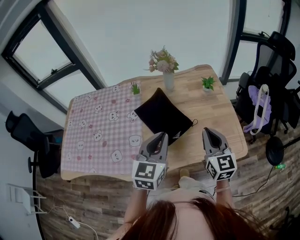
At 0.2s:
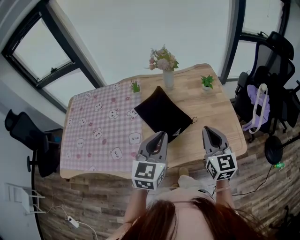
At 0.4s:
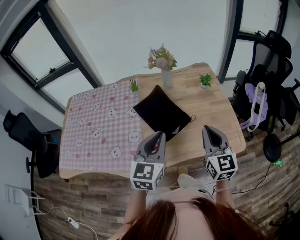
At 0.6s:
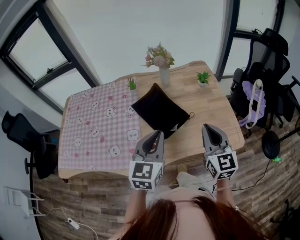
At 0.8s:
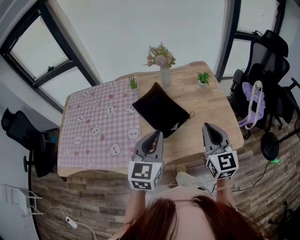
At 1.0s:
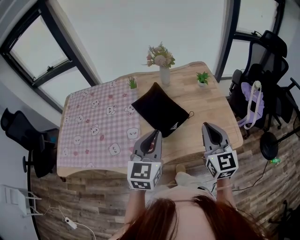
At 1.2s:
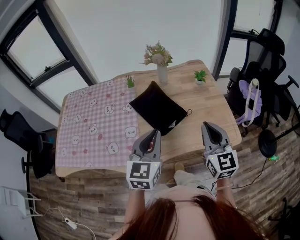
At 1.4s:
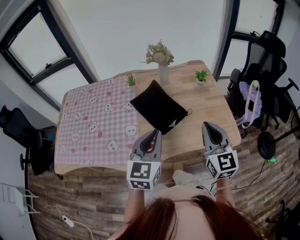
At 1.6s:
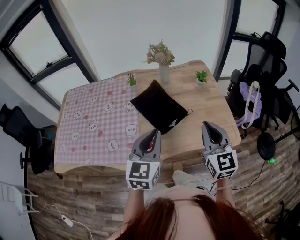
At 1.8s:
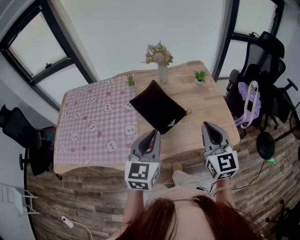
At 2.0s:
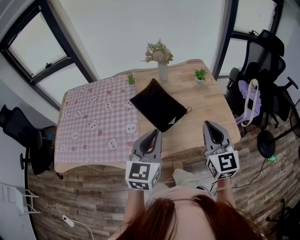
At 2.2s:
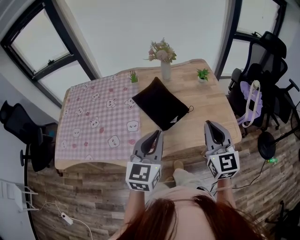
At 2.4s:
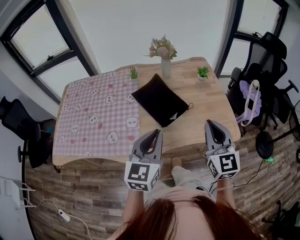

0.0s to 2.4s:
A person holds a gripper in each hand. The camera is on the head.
0.0s to 1.2s: Both grippers travel together backward, approximately 5 cm.
1.2s to 2.4s: There are only small adjustments of the grippers.

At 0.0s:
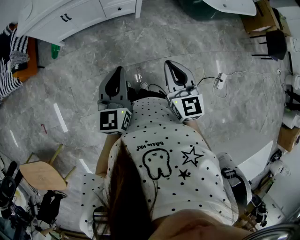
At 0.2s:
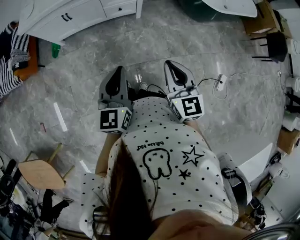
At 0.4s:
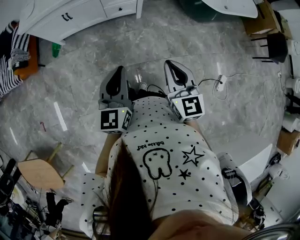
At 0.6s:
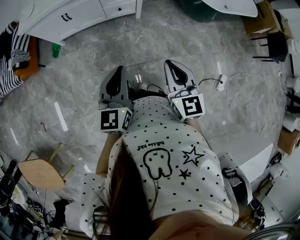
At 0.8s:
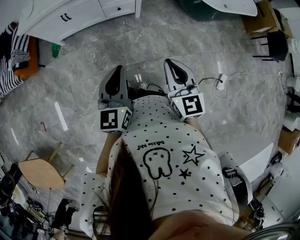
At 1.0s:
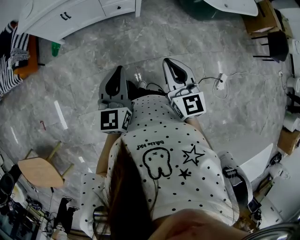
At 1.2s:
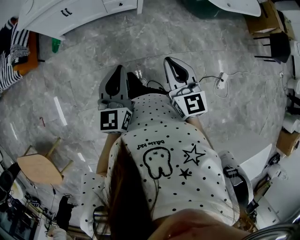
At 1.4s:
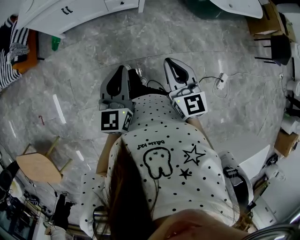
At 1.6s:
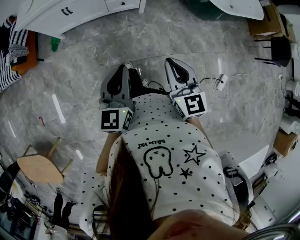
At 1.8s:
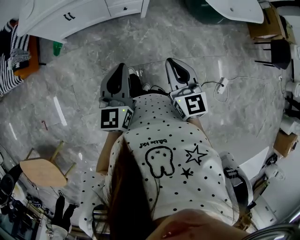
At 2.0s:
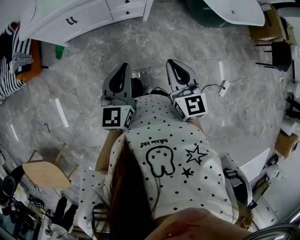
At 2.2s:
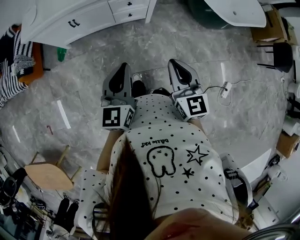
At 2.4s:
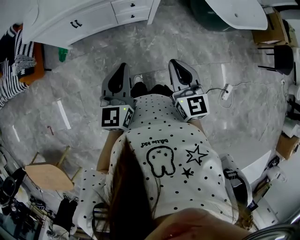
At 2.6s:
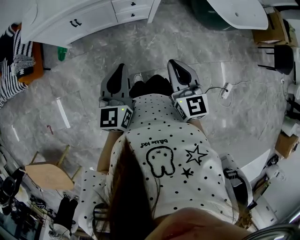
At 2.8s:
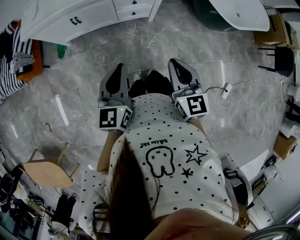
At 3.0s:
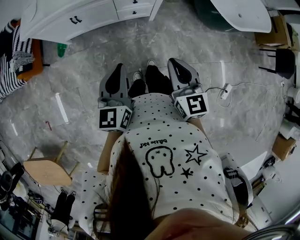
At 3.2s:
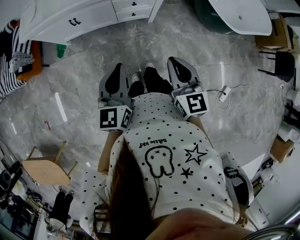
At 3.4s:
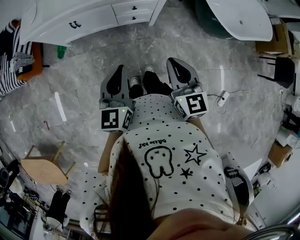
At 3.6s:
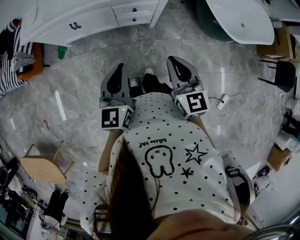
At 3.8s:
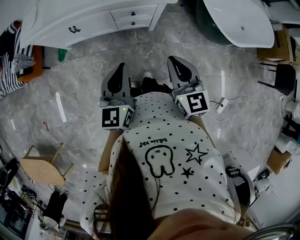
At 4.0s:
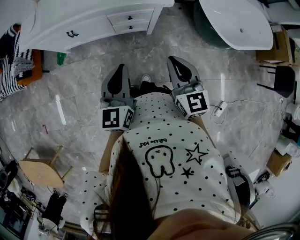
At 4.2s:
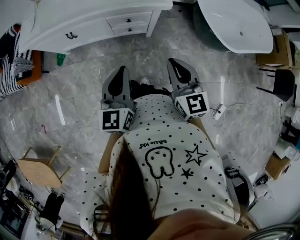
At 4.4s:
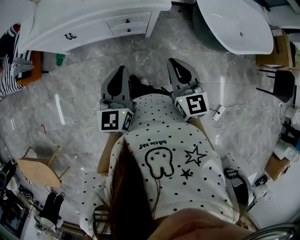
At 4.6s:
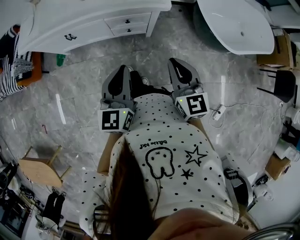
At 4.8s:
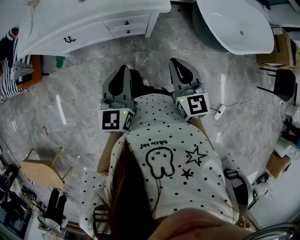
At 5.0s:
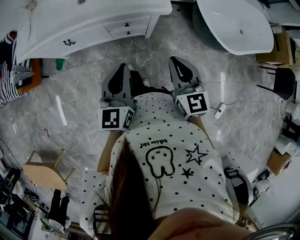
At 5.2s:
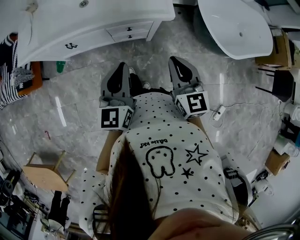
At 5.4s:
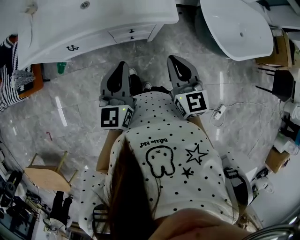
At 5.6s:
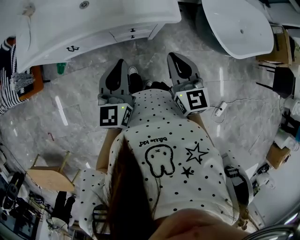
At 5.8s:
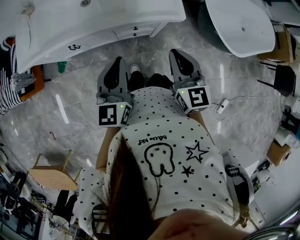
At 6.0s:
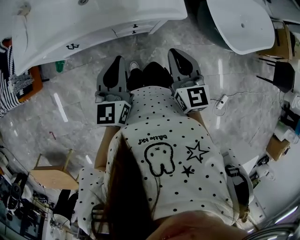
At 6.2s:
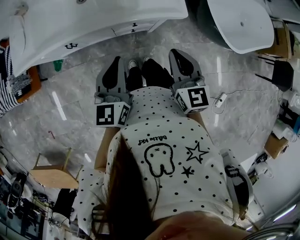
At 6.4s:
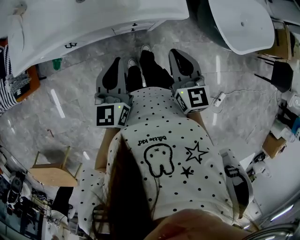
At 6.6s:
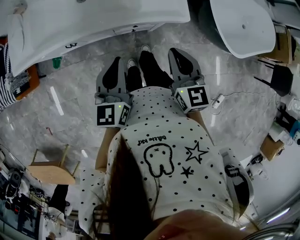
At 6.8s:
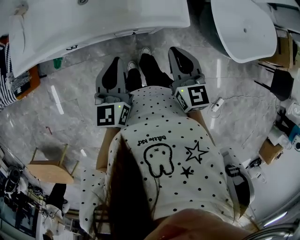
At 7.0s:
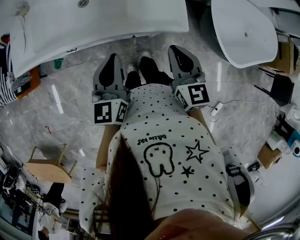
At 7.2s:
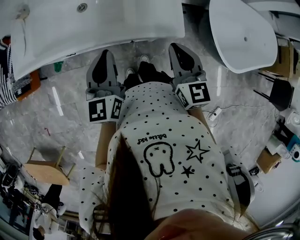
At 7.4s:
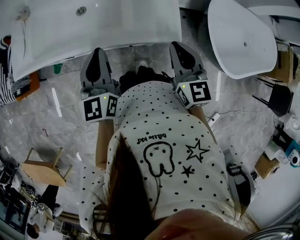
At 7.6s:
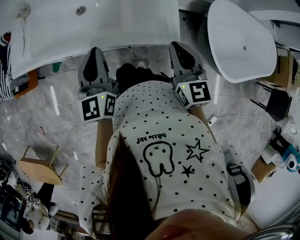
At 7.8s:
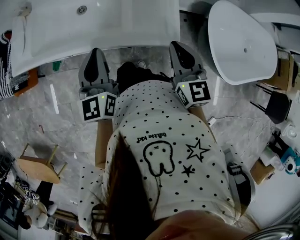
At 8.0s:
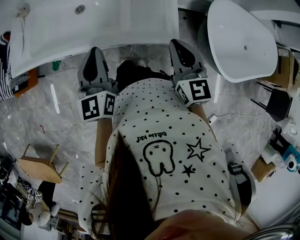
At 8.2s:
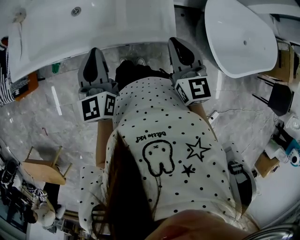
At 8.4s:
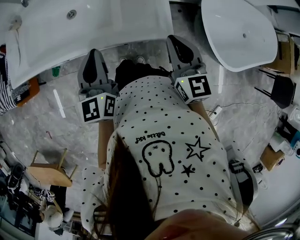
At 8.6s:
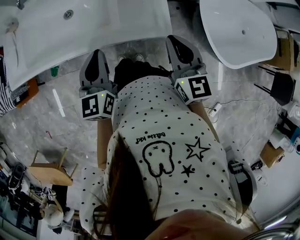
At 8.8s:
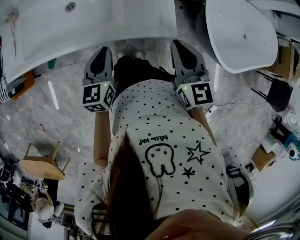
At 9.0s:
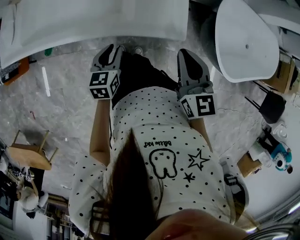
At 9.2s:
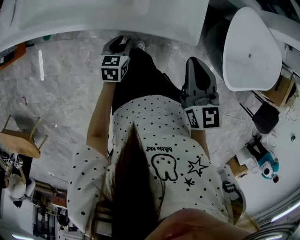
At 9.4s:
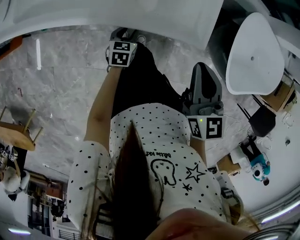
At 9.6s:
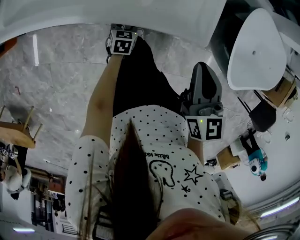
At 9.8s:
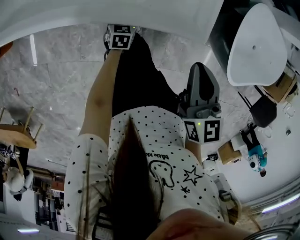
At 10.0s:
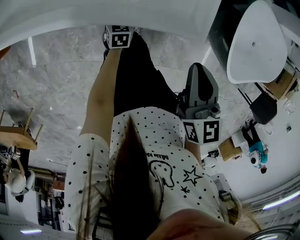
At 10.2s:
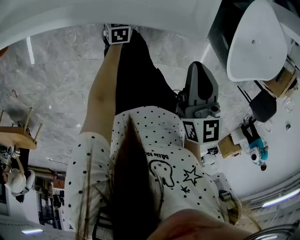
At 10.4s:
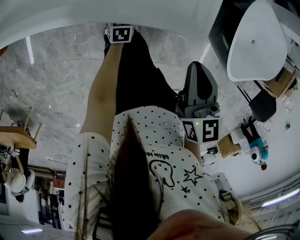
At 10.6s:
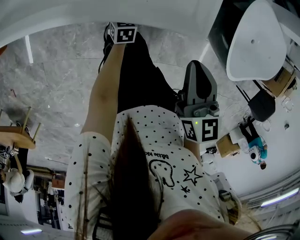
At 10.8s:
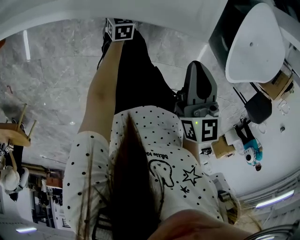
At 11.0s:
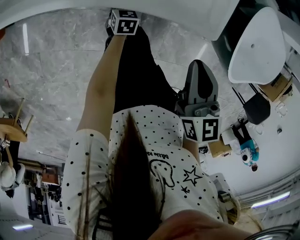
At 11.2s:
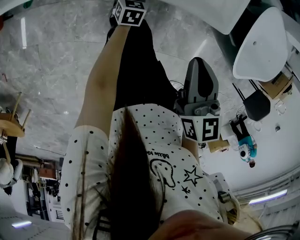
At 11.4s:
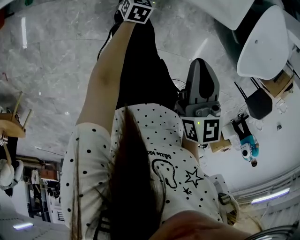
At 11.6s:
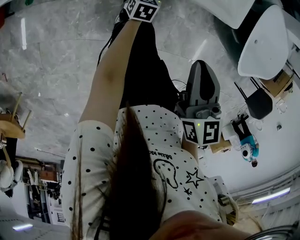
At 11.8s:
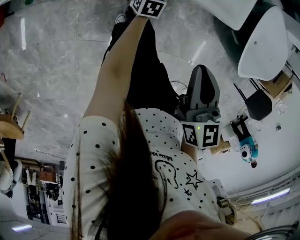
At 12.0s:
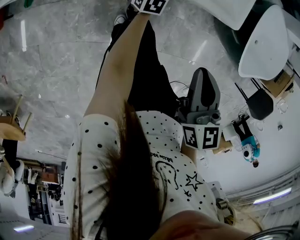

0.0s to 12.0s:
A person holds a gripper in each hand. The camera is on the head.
0.0s to 3.0s: The grippers move only a little.
3.0s to 6.0s: There are only small adjustments of the grippers.
6.0s to 7.6s: The left gripper goes about 10 cm to the left.
7.6s to 9.0s: The left gripper shifts some 20 cm downward, changes its angle by roughly 30 degrees, and opens its fingers.
9.0s to 10.4s: The left gripper shifts roughly 30 cm downward. The right gripper shifts roughly 10 cm downward.
10.4s to 12.0s: The left gripper closes, then opens again. Meanwhile the right gripper is displaced backward and to the left by some 10 cm.

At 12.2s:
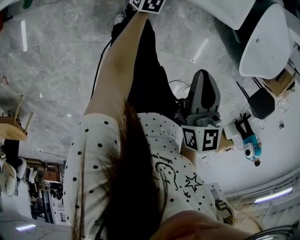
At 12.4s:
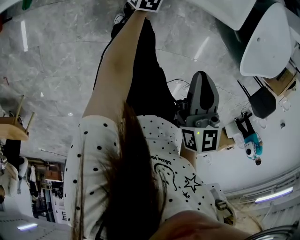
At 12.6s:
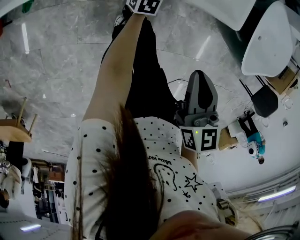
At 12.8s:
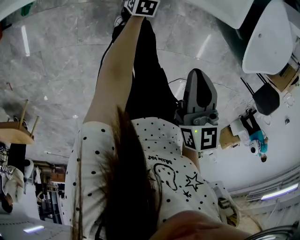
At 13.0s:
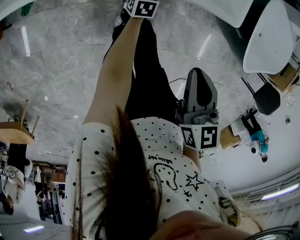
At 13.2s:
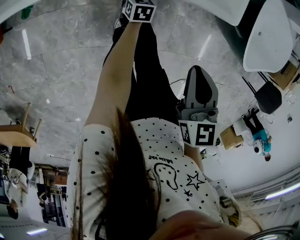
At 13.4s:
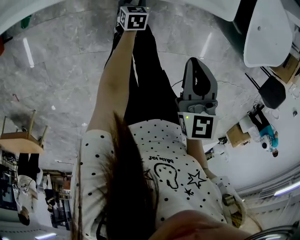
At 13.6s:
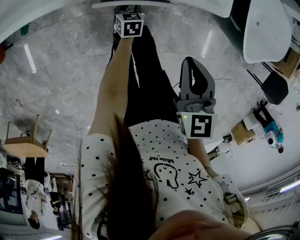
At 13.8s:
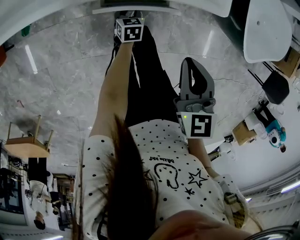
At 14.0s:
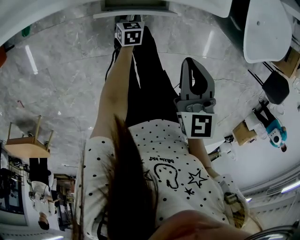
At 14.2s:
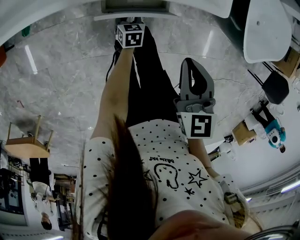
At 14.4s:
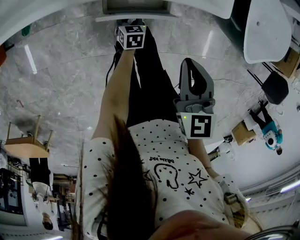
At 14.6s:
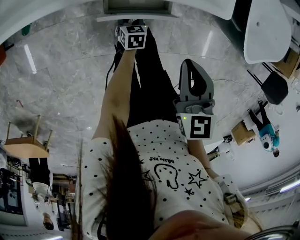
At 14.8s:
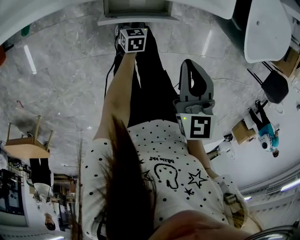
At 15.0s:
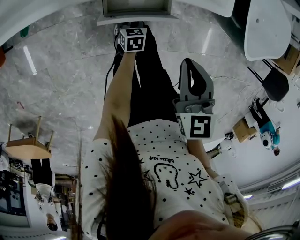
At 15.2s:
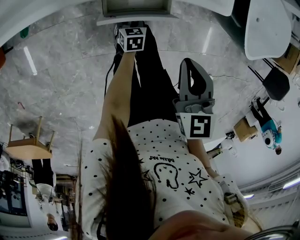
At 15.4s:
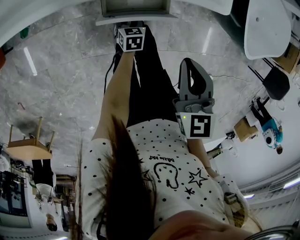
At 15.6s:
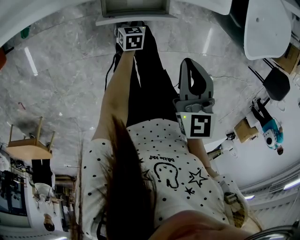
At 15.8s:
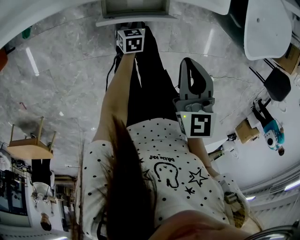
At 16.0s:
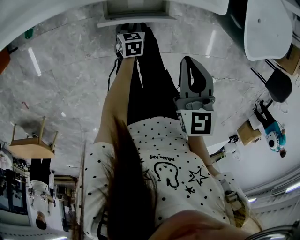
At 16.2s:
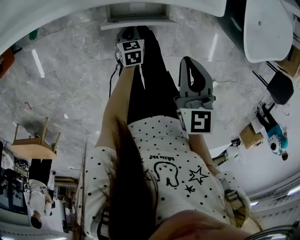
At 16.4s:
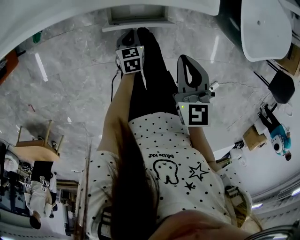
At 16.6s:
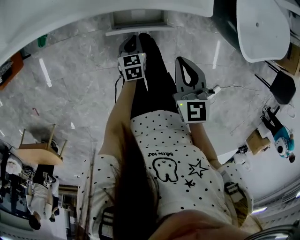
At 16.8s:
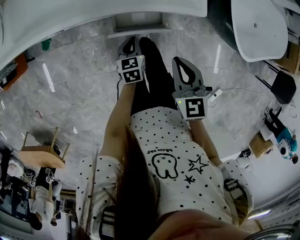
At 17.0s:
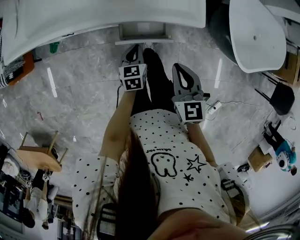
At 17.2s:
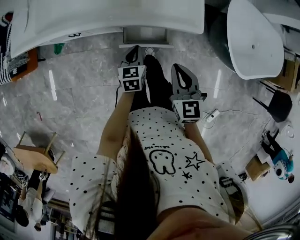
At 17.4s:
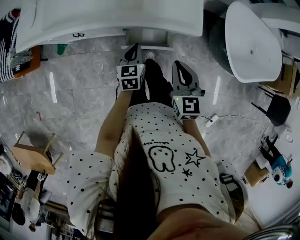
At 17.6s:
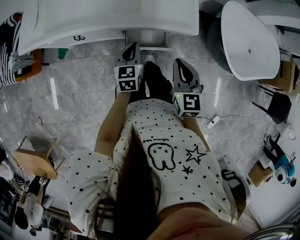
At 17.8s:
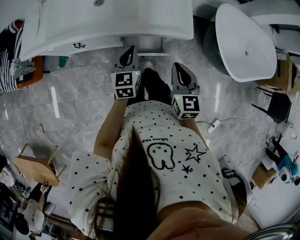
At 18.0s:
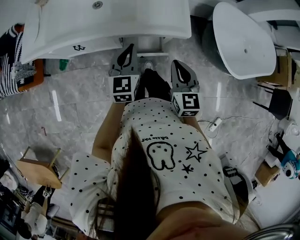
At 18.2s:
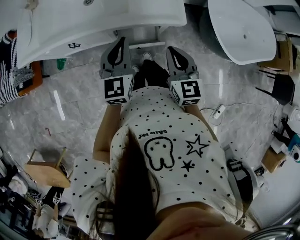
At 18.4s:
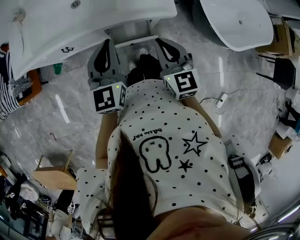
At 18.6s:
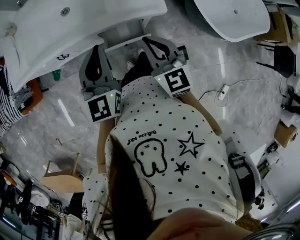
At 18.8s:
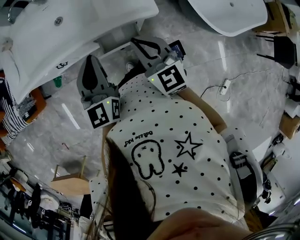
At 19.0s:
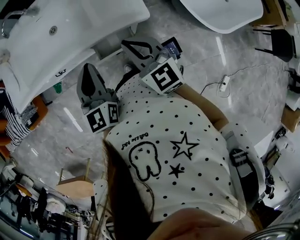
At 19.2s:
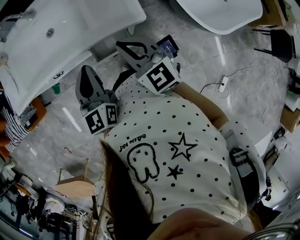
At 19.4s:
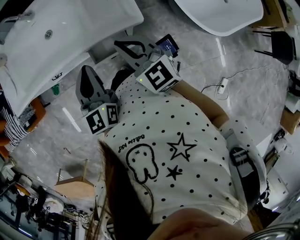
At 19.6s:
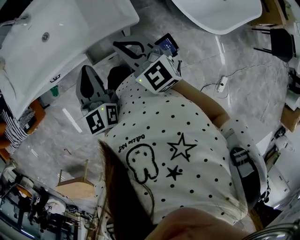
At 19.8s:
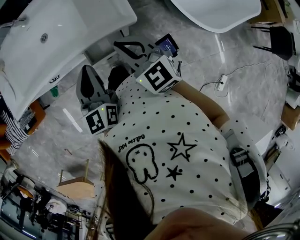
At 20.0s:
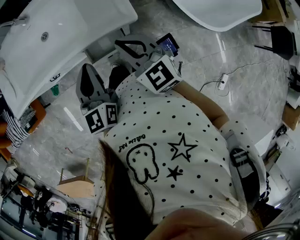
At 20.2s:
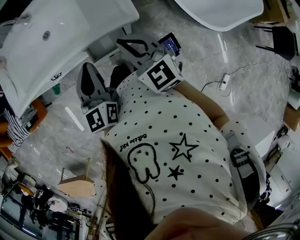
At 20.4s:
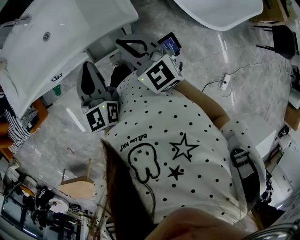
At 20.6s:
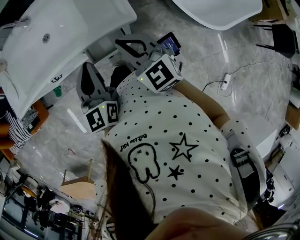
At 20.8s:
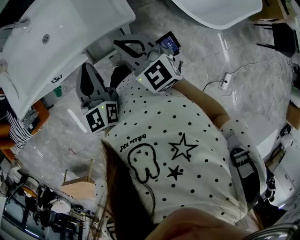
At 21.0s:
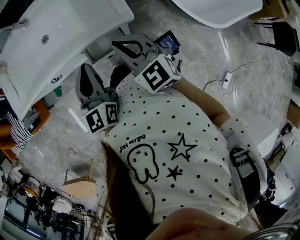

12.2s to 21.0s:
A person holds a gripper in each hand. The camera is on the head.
12.2s to 13.6s: The left gripper changes place by some 5 cm.
13.6s to 15.2s: The left gripper goes approximately 5 cm backward.
15.2s to 16.6s: The left gripper is displaced upward by about 15 cm, and closes up.
16.6s to 18.0s: The left gripper is displaced upward by some 30 cm, and tilts its fingers about 30 degrees upward. The right gripper shifts approximately 10 cm upward.
18.0s to 19.6s: The right gripper shifts about 5 cm forward, and changes its angle by roughly 20 degrees. Meanwhile the left gripper heads to the right and upward, covering some 10 cm.
19.6s to 21.0s: The grippers make only small movements.

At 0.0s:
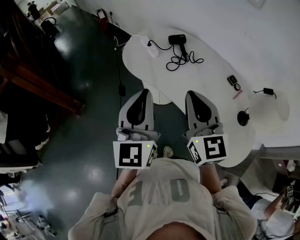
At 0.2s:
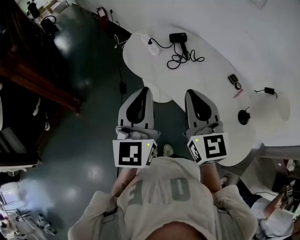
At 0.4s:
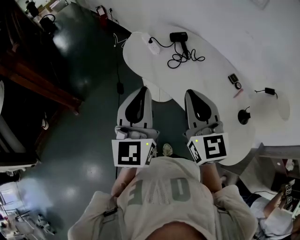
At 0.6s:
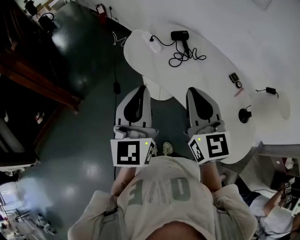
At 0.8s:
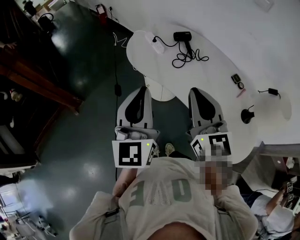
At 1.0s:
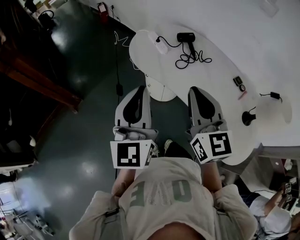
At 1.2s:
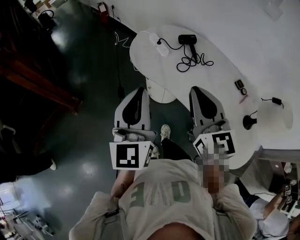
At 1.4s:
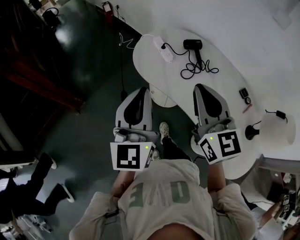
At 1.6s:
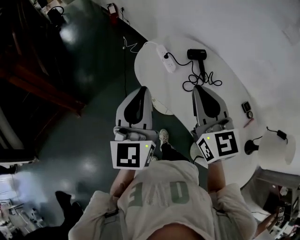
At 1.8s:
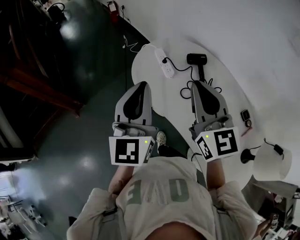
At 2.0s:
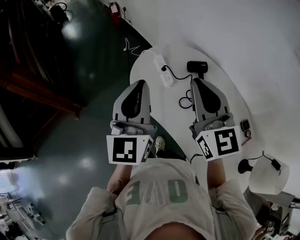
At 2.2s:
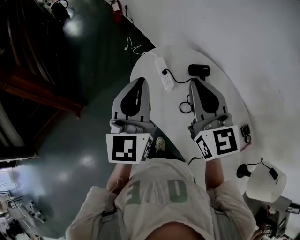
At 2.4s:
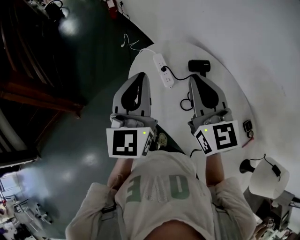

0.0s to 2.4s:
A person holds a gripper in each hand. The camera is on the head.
0.0s to 1.2s: The two grippers go about 10 cm to the left.
1.2s to 2.4s: Both grippers travel together forward, approximately 30 cm.
